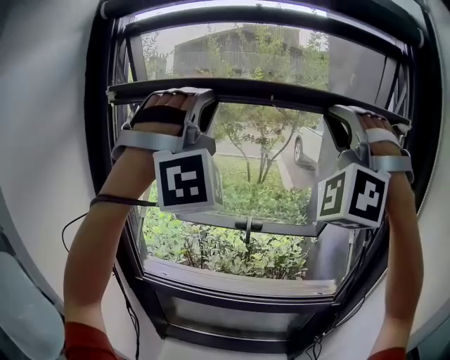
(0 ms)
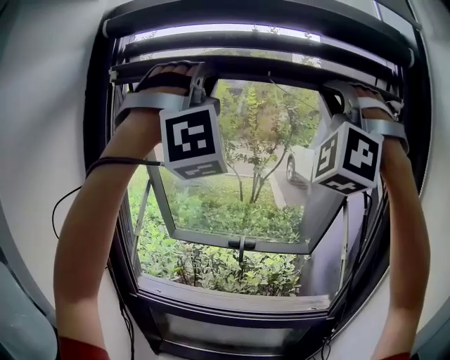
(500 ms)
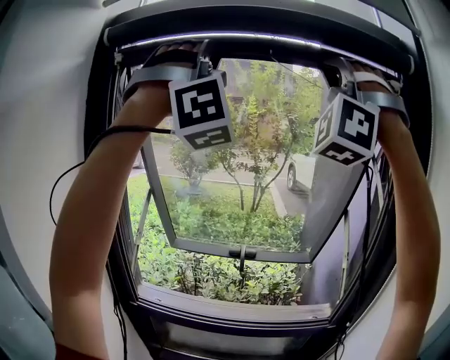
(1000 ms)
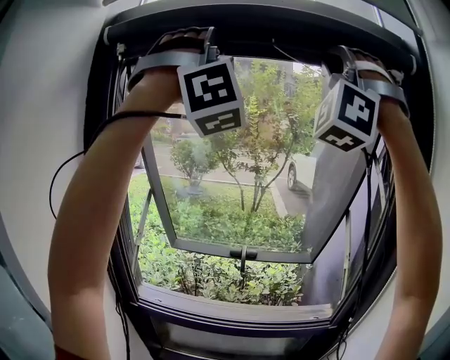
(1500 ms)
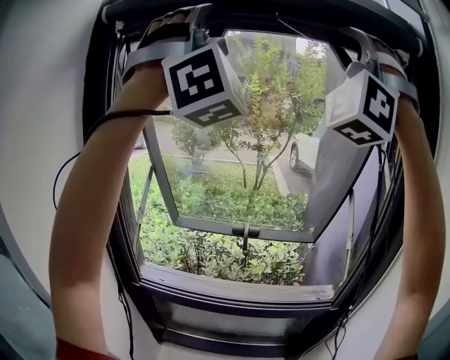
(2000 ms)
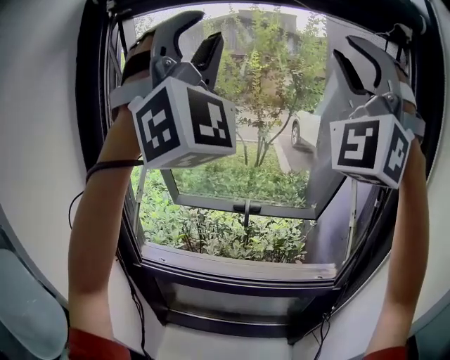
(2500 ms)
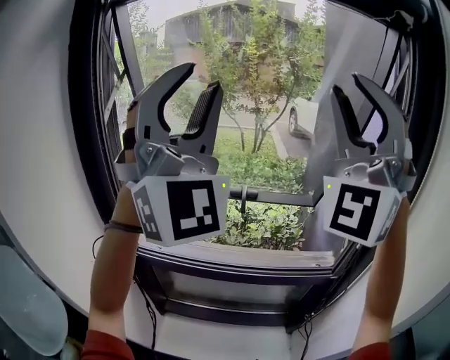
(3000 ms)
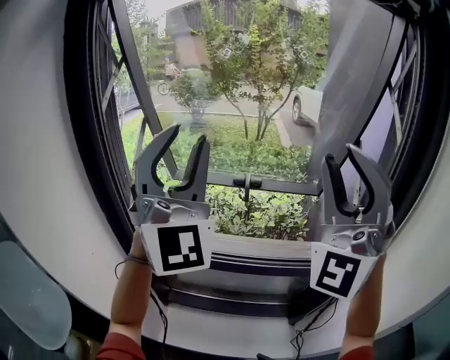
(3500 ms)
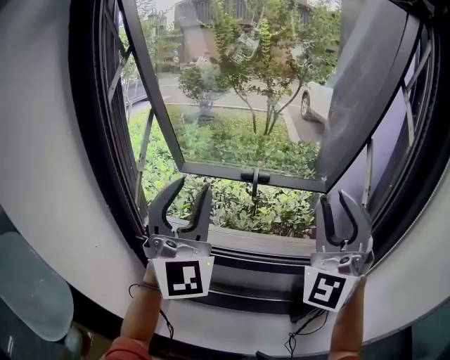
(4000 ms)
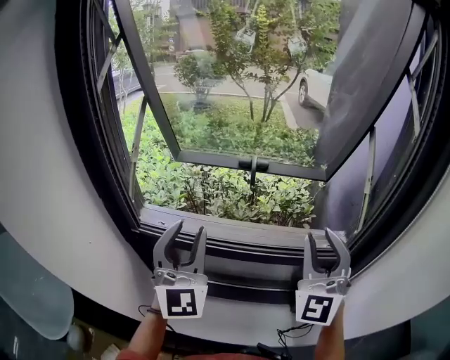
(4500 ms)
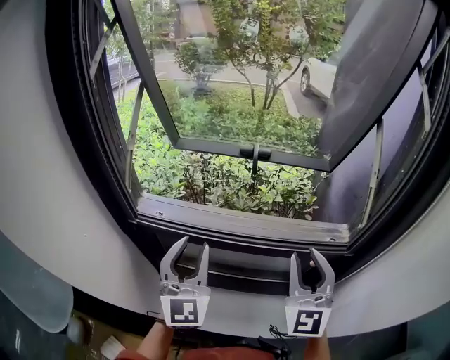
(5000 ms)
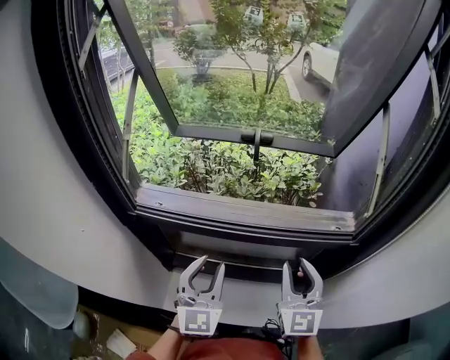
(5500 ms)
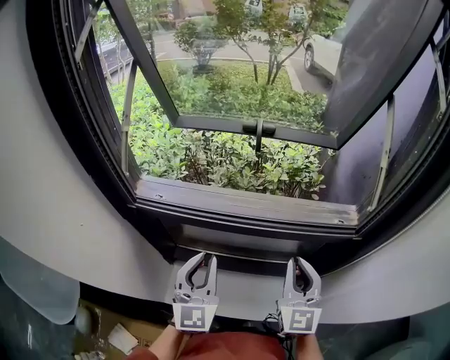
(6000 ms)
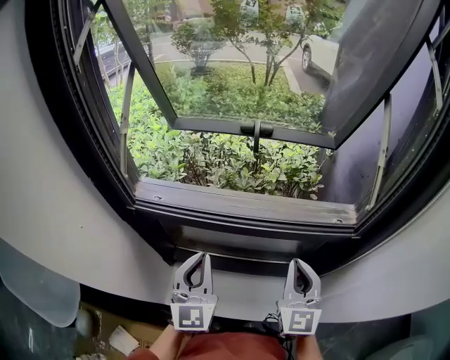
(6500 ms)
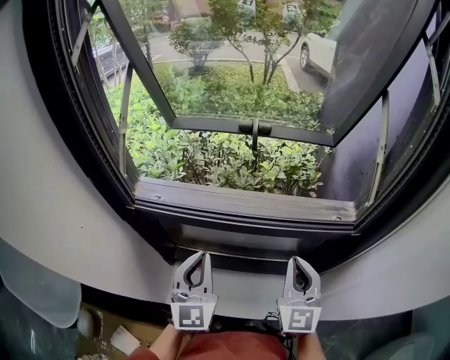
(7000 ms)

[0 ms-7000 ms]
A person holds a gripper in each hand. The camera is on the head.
0 ms to 2000 ms: The grippers both shift upward by roughly 15 cm. The left gripper rotates some 20 degrees.
2000 ms to 3500 ms: The two grippers go approximately 30 cm downward. The left gripper twists roughly 40 degrees counterclockwise, seen from behind. The right gripper turns by approximately 30 degrees.
3500 ms to 5000 ms: The two grippers go approximately 30 cm downward. The left gripper changes its angle by roughly 40 degrees. The right gripper twists roughly 40 degrees clockwise, seen from behind.
5000 ms to 7000 ms: The grippers both shift downward by roughly 10 cm. The right gripper closes its fingers. The left gripper closes its fingers.

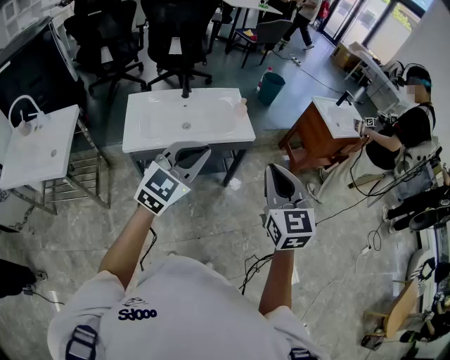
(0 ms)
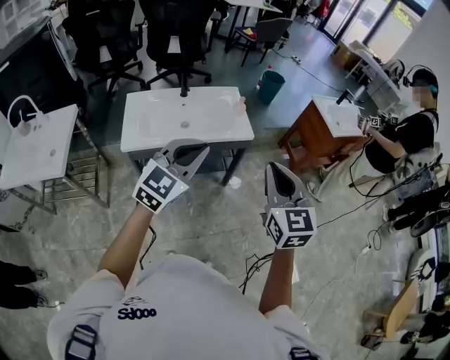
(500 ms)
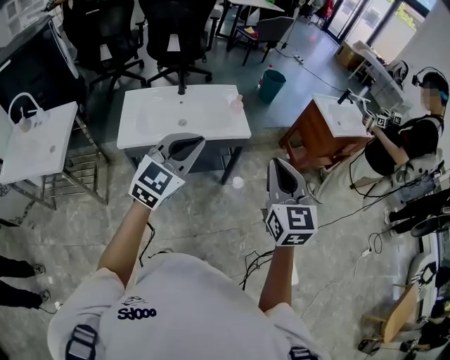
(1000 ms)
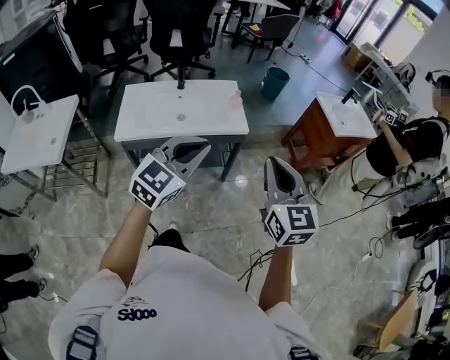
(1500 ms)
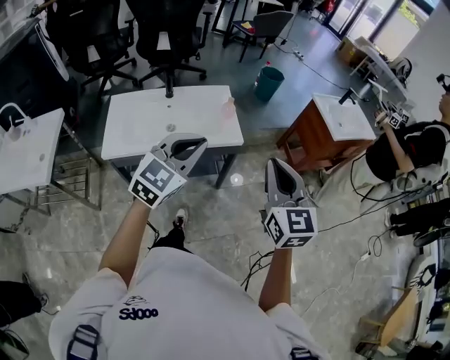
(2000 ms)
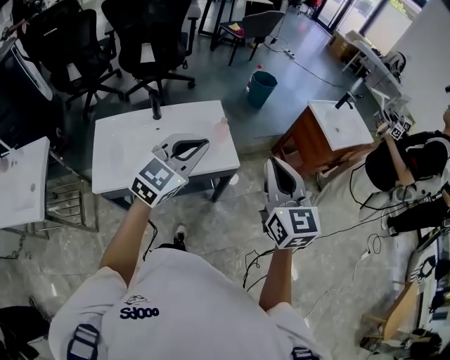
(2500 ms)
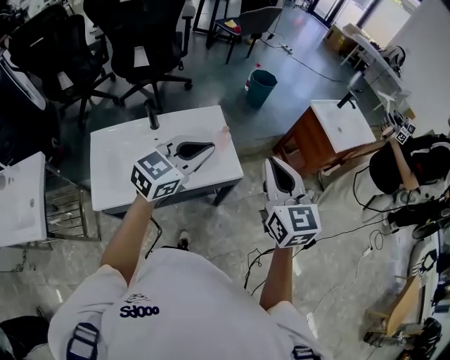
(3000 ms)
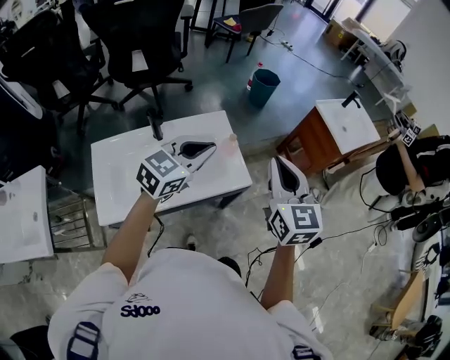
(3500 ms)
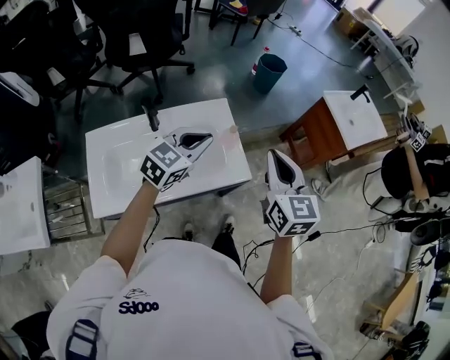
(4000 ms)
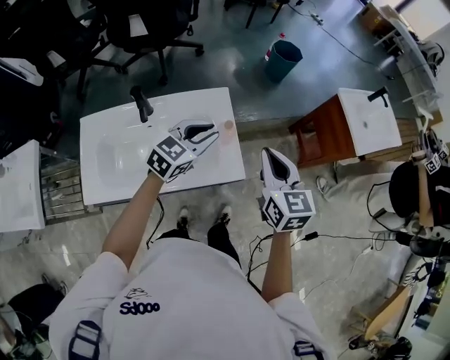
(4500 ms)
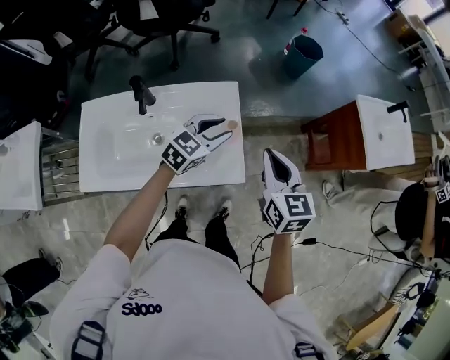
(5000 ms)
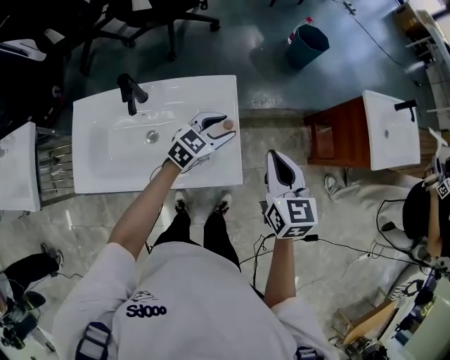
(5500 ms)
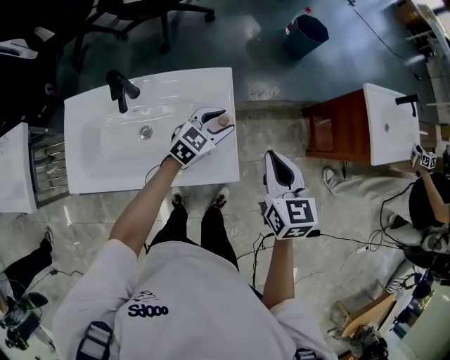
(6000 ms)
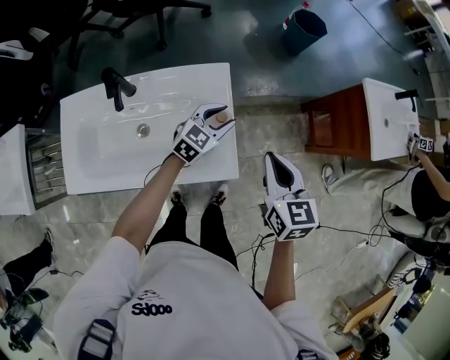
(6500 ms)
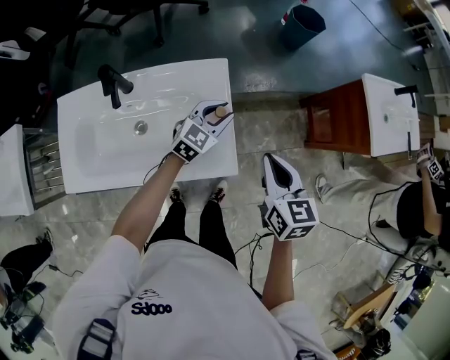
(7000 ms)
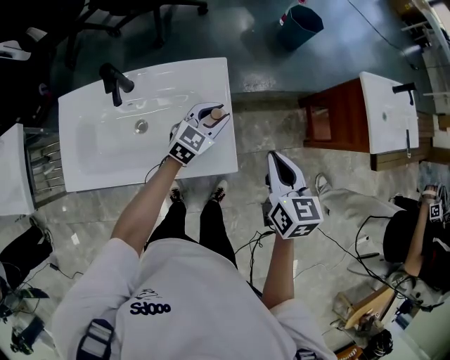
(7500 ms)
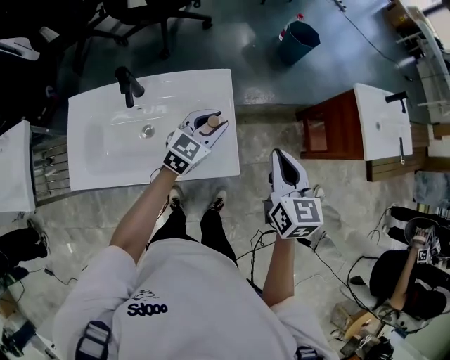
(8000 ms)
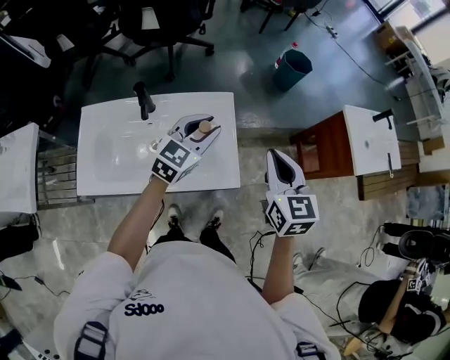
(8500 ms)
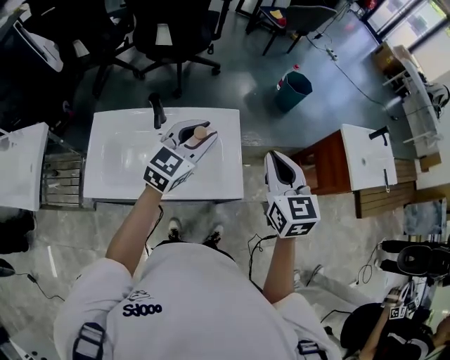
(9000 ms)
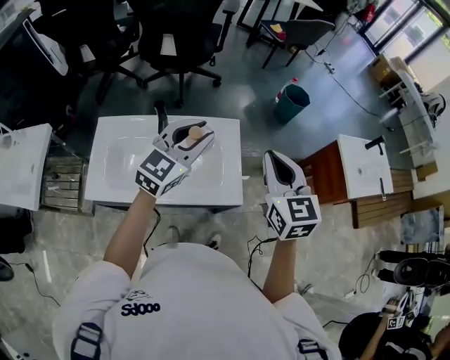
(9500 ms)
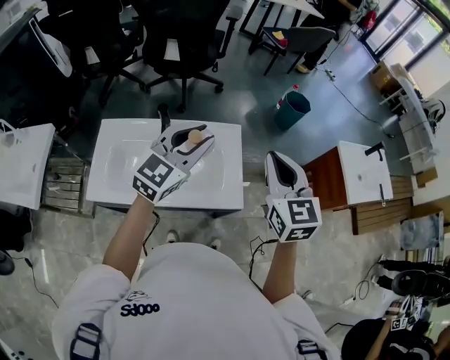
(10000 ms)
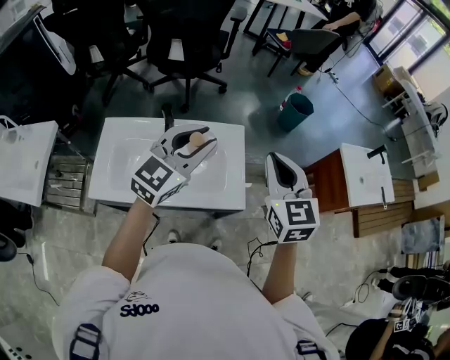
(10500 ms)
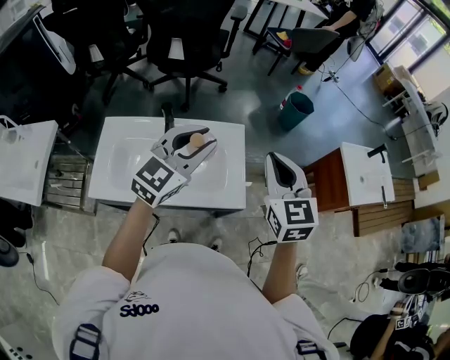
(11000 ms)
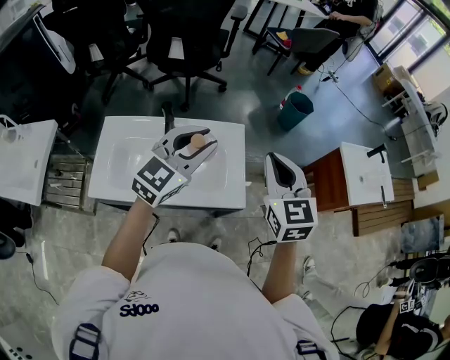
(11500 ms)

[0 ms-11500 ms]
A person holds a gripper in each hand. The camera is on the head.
0 ms to 2000 ms: The grippers both shift forward and to the right by about 10 cm.
2000 ms to 4000 ms: The left gripper moves forward, some 30 cm, and rotates about 20 degrees, while the right gripper travels forward and to the left by about 25 cm.
4000 ms to 6000 ms: The grippers both shift downward and forward by roughly 20 cm. The right gripper rotates roughly 20 degrees, while the left gripper opens up.
6000 ms to 7500 ms: The grippers stay close to where they were, moving slightly.
7500 ms to 9500 ms: Both grippers move upward and to the left, approximately 25 cm. The right gripper rotates approximately 30 degrees. The left gripper changes its angle by some 20 degrees.
9500 ms to 11500 ms: The grippers make only small movements.

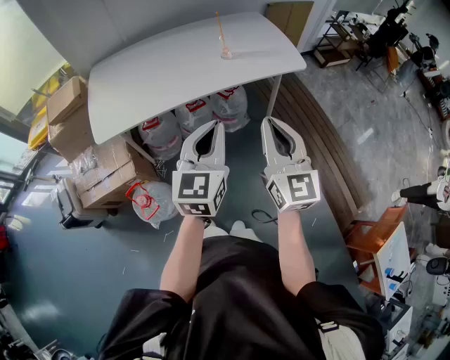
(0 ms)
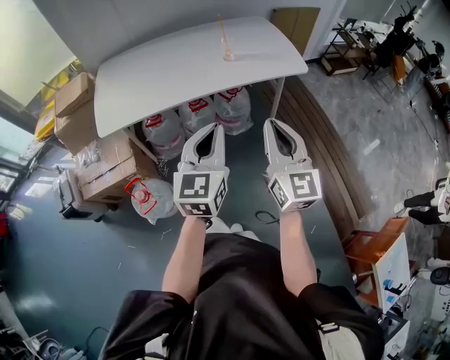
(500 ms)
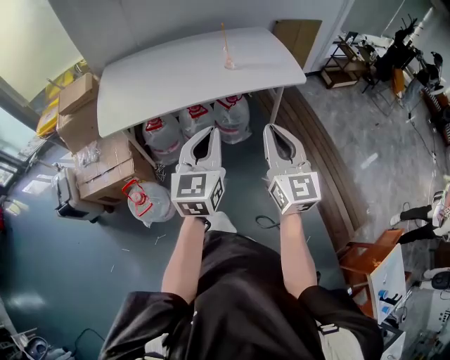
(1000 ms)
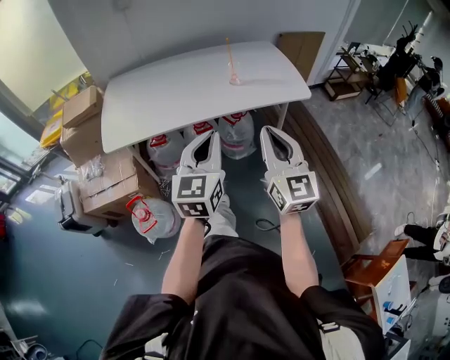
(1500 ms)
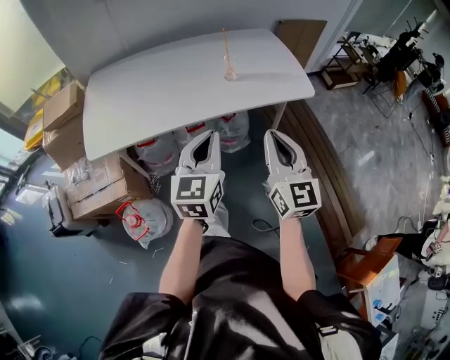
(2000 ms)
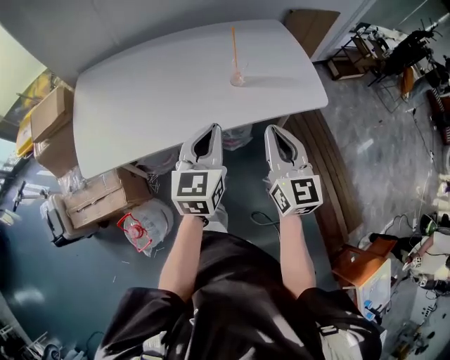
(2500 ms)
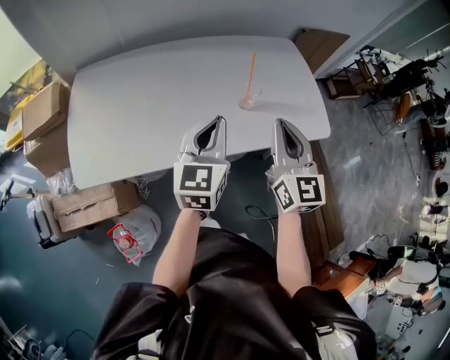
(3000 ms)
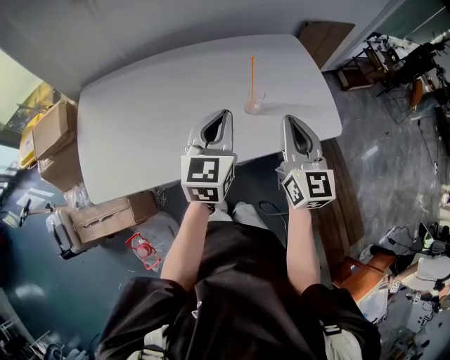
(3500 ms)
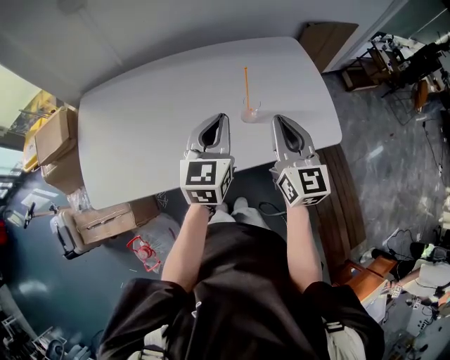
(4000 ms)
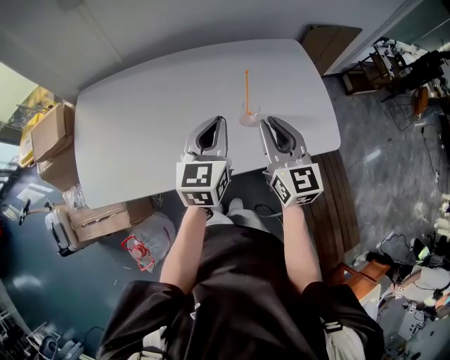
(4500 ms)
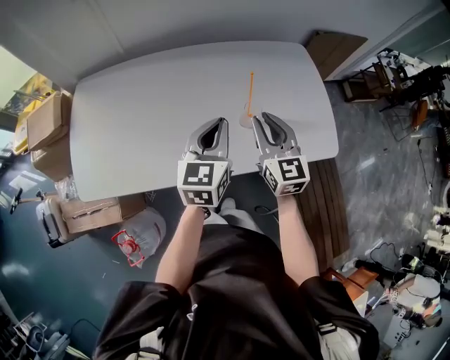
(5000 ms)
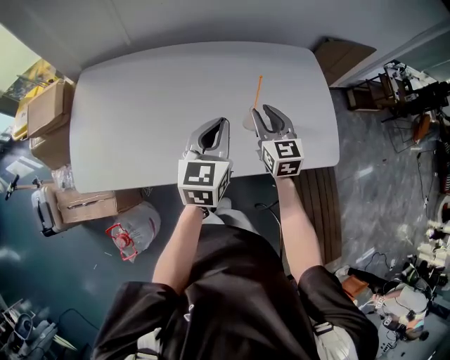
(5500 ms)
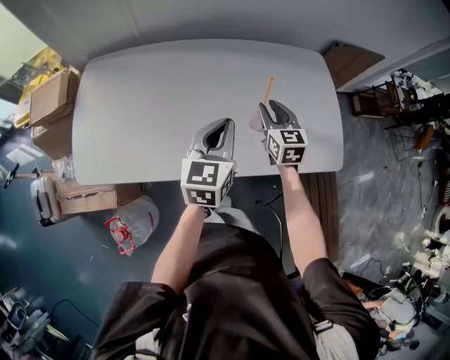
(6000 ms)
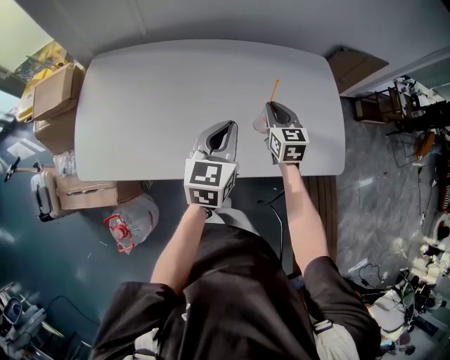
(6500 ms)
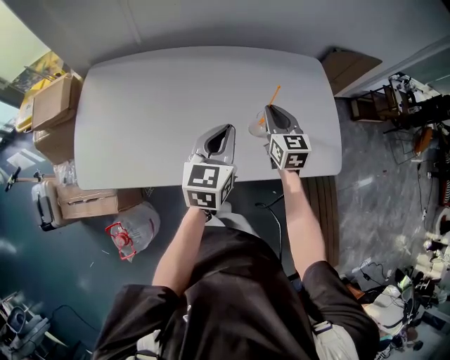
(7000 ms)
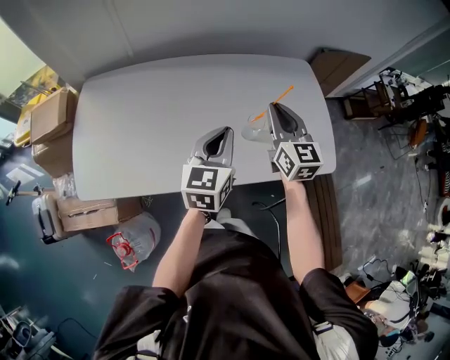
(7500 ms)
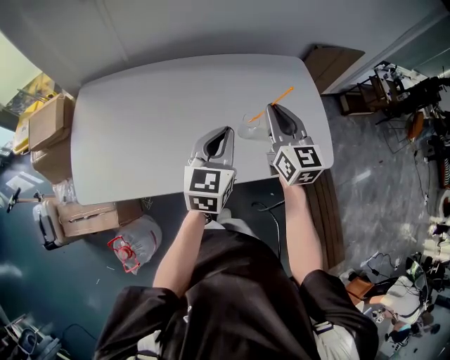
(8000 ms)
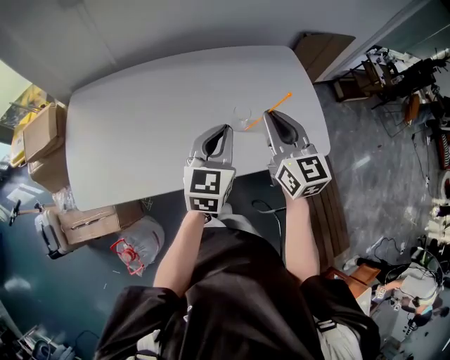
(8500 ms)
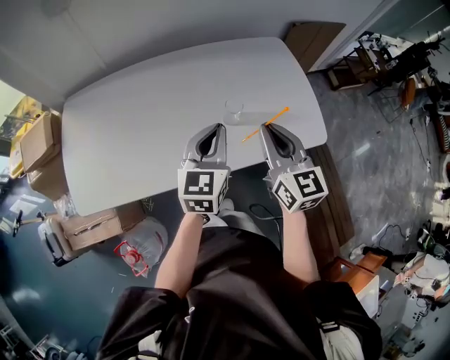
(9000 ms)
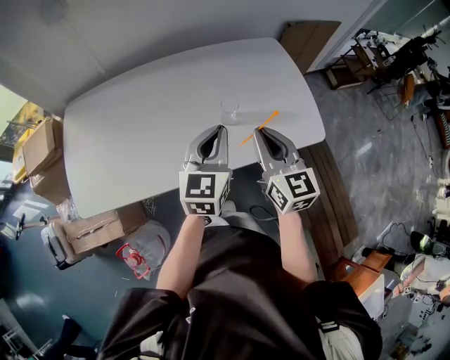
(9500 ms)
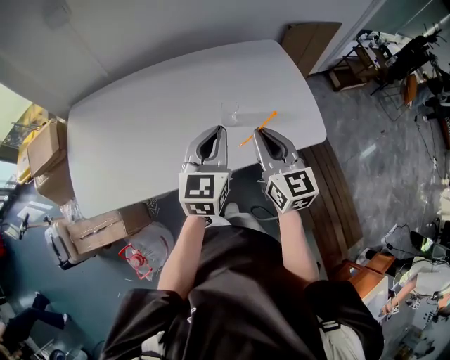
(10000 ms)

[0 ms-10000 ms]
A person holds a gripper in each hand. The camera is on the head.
0 ms to 2000 ms: Both grippers move forward, roughly 10 cm.
2000 ms to 4000 ms: Both grippers travel together forward, approximately 35 cm.
4000 ms to 6000 ms: The right gripper heads downward and forward, covering some 20 cm, turns by approximately 20 degrees, and opens its fingers.
6000 ms to 8000 ms: The right gripper goes some 15 cm upward, and closes its fingers.
8000 ms to 10000 ms: The right gripper shifts some 10 cm backward; the left gripper changes place by roughly 5 cm.
